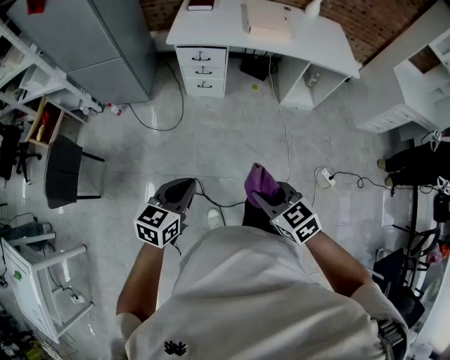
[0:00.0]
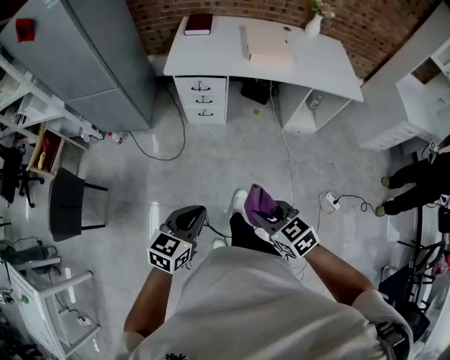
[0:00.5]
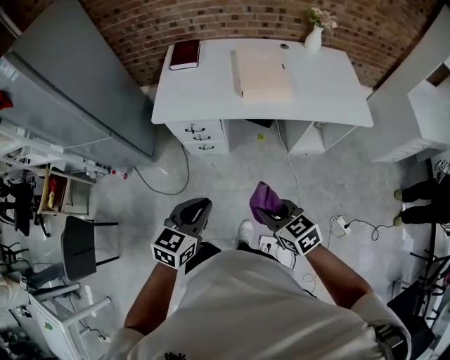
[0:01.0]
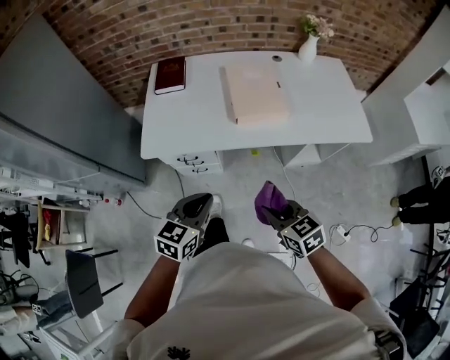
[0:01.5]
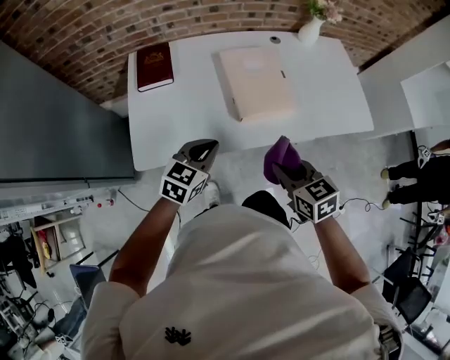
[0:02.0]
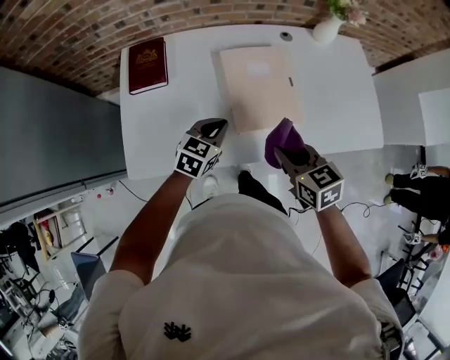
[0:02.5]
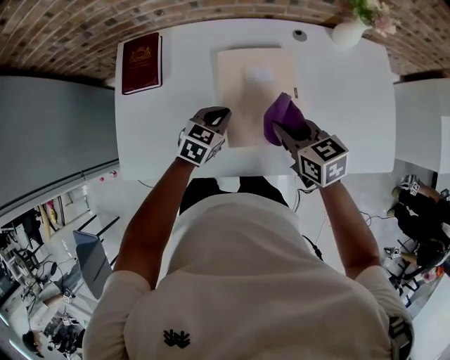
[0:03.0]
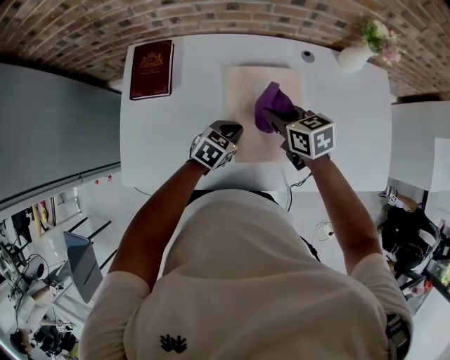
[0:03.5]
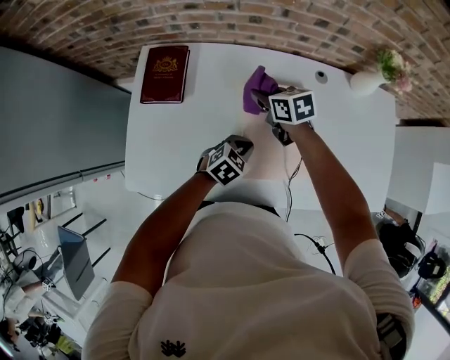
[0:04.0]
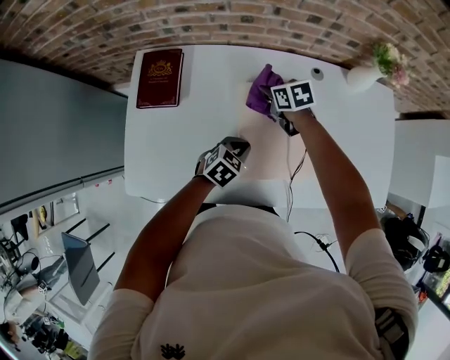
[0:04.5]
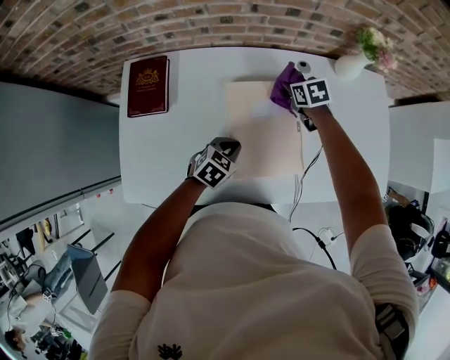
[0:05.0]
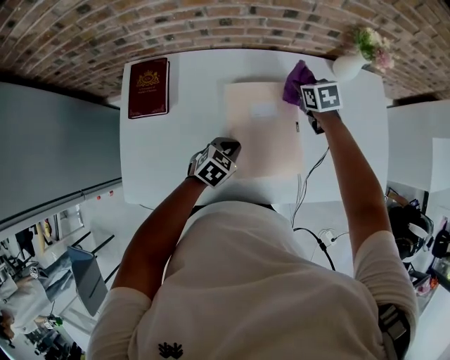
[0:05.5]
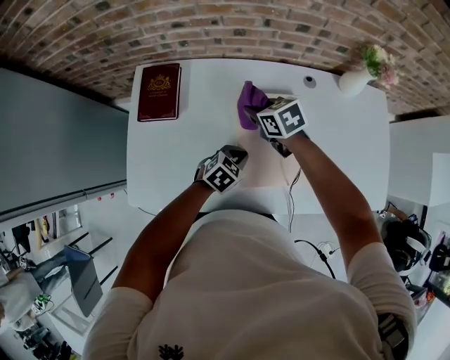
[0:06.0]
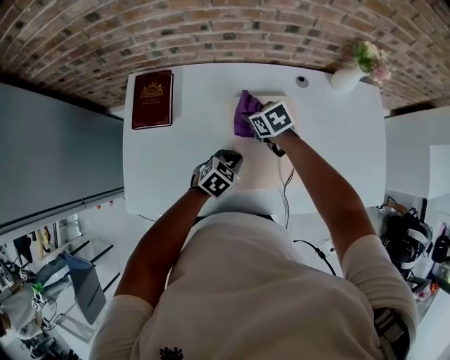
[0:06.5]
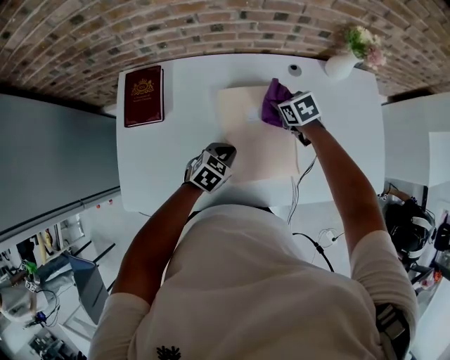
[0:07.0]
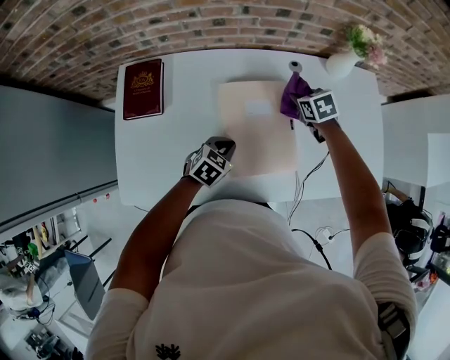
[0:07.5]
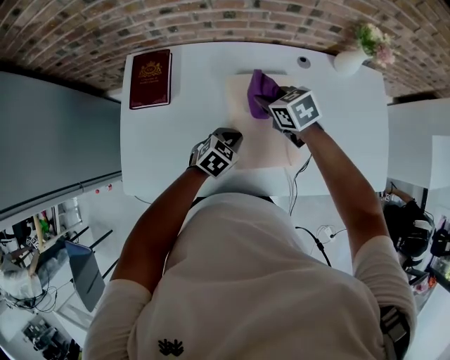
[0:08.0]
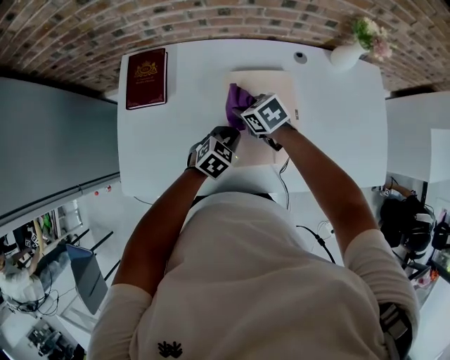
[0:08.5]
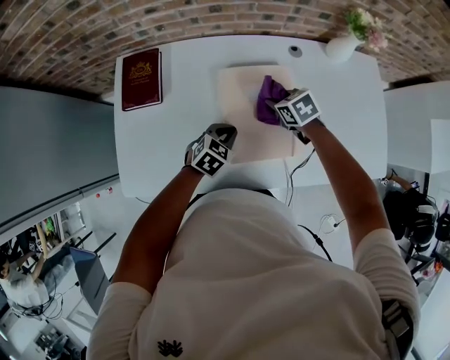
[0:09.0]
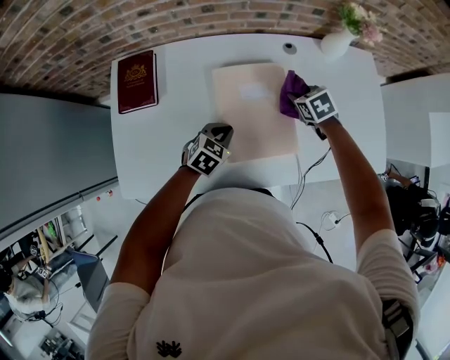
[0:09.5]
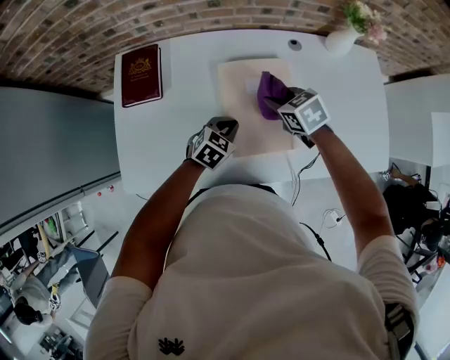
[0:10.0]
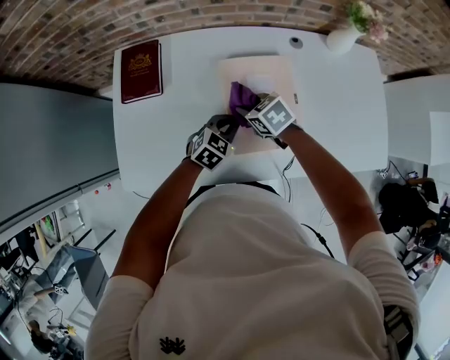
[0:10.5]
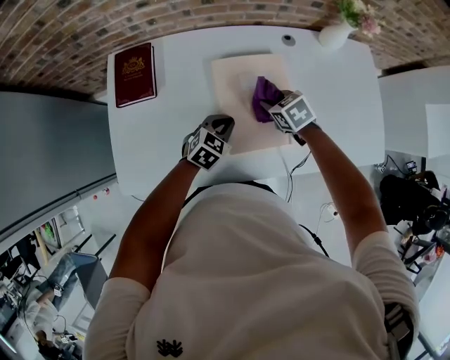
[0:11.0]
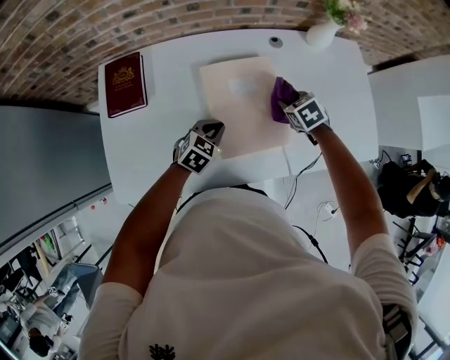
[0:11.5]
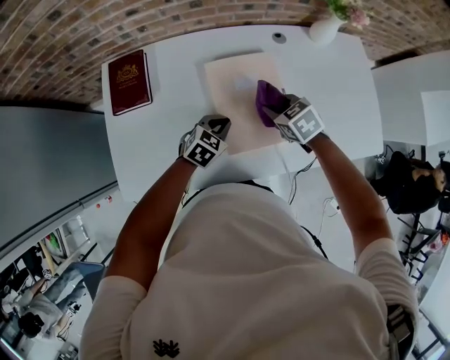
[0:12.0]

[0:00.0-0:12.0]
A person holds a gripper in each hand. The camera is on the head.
0:00.0 to 0:02.0: Both grippers are carried forward, approximately 70 cm. The left gripper changes its angle by roughly 20 degrees, while the right gripper swivels approximately 30 degrees.
0:02.0 to 0:04.0: The left gripper goes some 35 cm forward, downward and to the right, and turns by about 20 degrees, while the right gripper is displaced forward by roughly 50 cm, and changes its angle by roughly 20 degrees.
0:04.0 to 0:06.0: The right gripper travels to the right and back again, roughly 20 cm each way.
0:06.0 to 0:08.0: The right gripper moves roughly 20 cm to the right and comes back.
0:08.0 to 0:10.0: The right gripper moves left and right over some 20 cm, changing direction 2 times.
0:10.0 to 0:12.0: The right gripper swings left and right, roughly 20 cm each way, with 2 reversals.

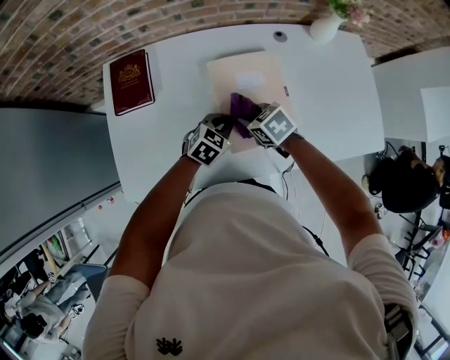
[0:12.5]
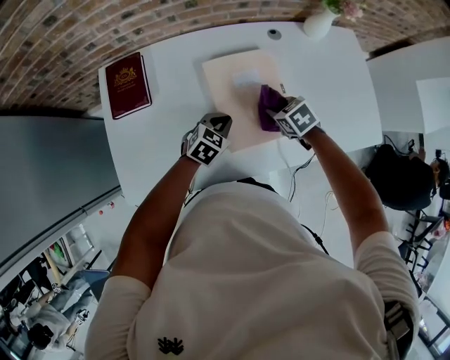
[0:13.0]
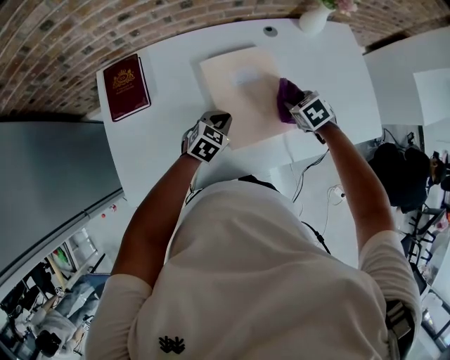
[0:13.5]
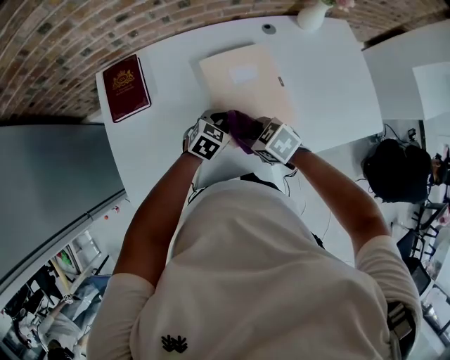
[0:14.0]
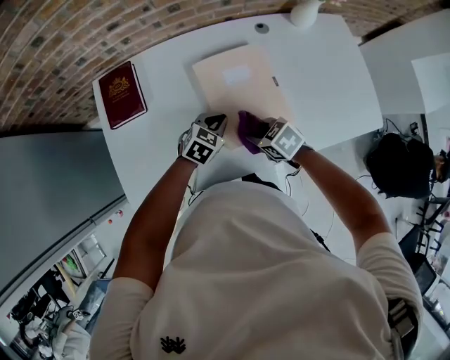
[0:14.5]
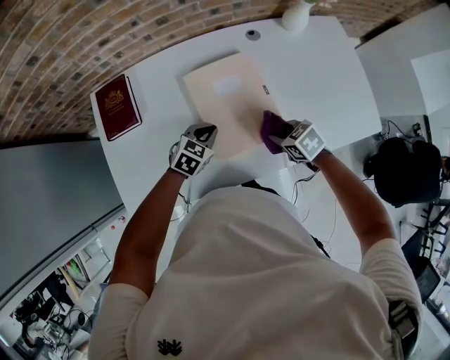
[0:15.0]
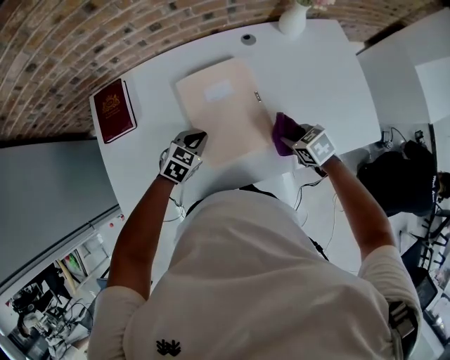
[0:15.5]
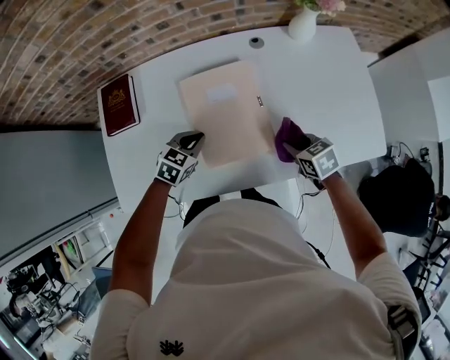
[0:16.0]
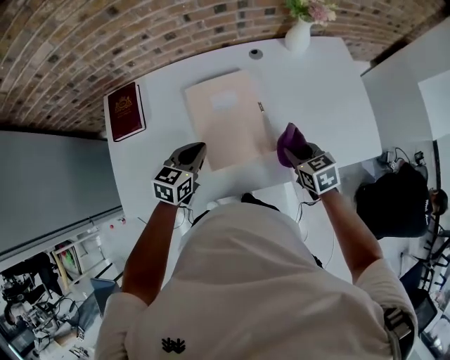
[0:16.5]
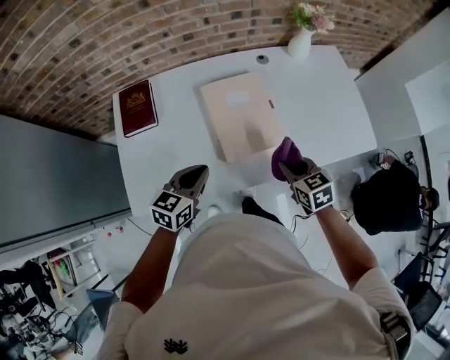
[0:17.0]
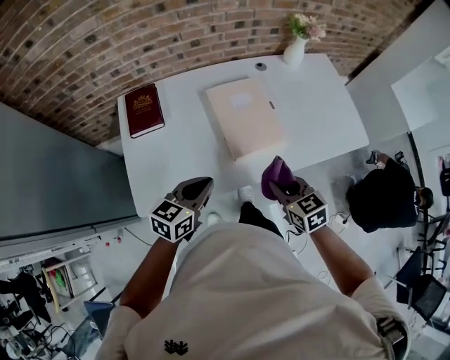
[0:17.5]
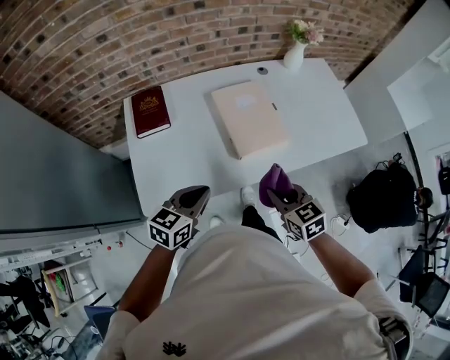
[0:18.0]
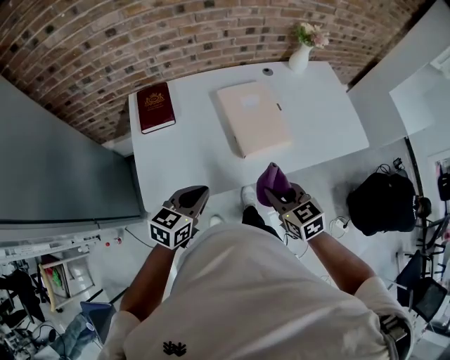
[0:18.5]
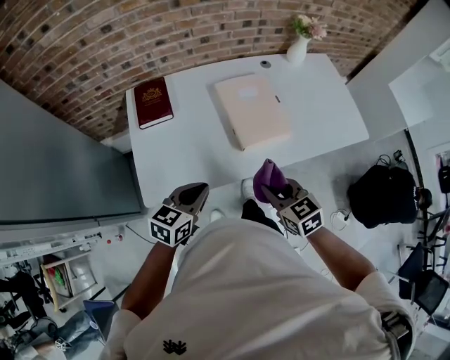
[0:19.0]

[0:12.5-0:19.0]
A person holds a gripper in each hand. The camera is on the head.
0:12.5 to 0:14.5: The right gripper swings left and right, some 20 cm each way, with 2 reversals.
0:14.5 to 0:17.0: The left gripper is displaced upward, backward and to the left by about 20 cm, and rotates roughly 30 degrees; the right gripper heads to the right, upward and backward, covering roughly 15 cm, and swivels some 30 degrees.
0:17.0 to 0:19.0: Both grippers move backward and to the left, about 20 cm.

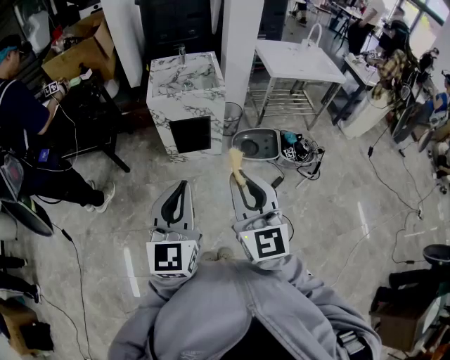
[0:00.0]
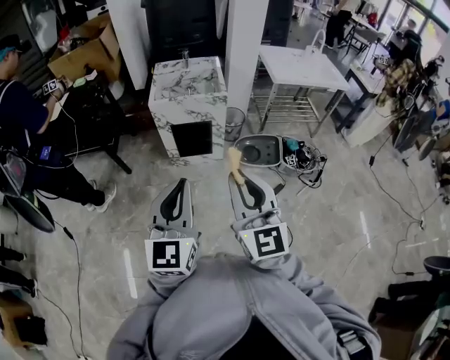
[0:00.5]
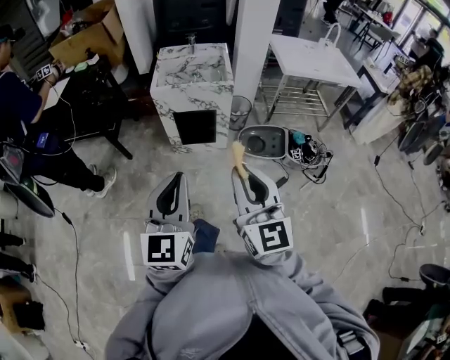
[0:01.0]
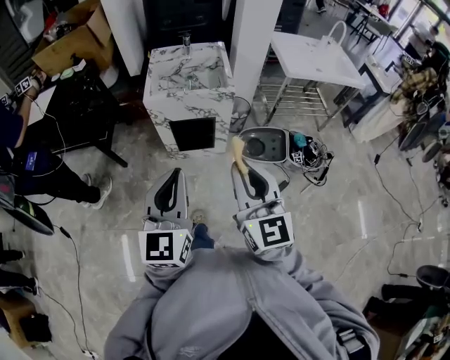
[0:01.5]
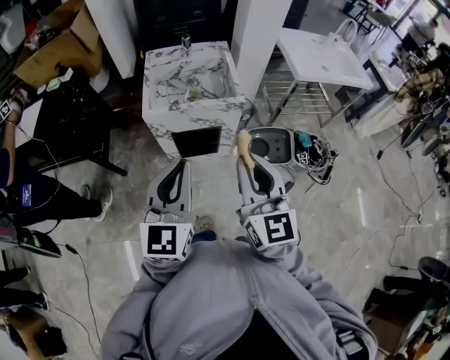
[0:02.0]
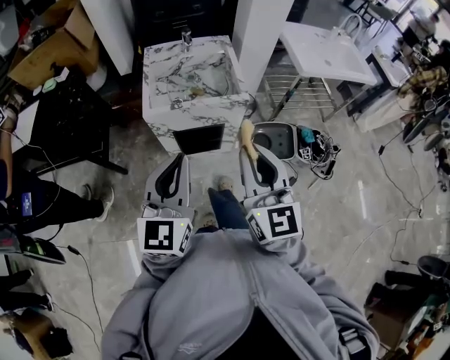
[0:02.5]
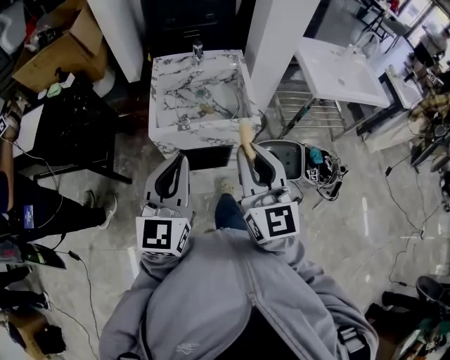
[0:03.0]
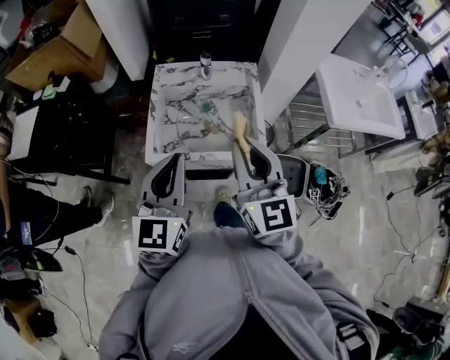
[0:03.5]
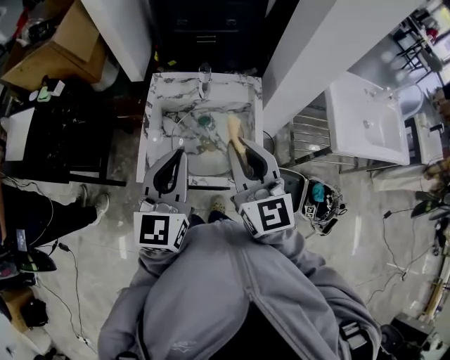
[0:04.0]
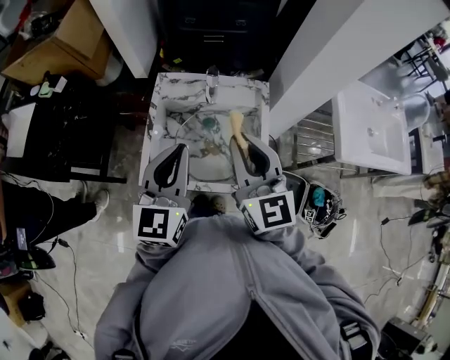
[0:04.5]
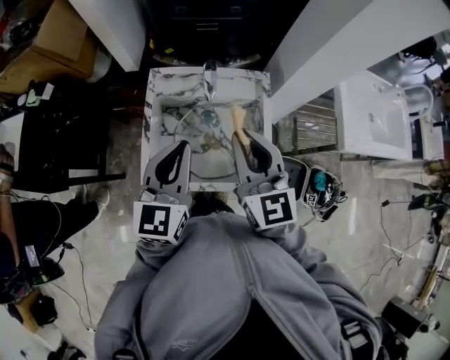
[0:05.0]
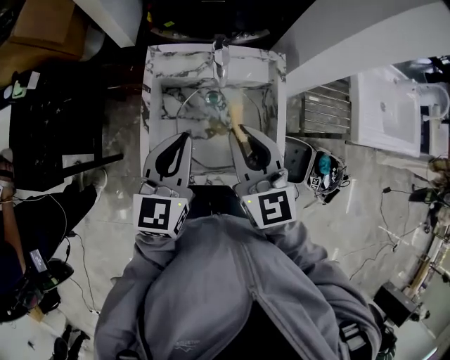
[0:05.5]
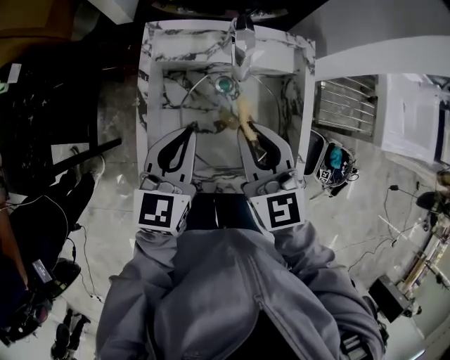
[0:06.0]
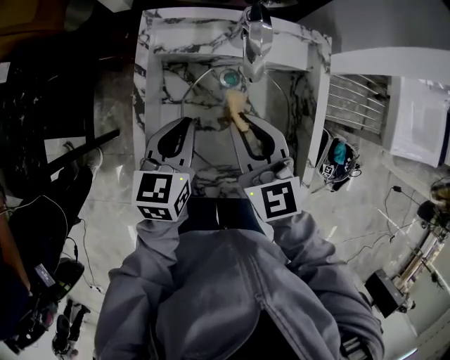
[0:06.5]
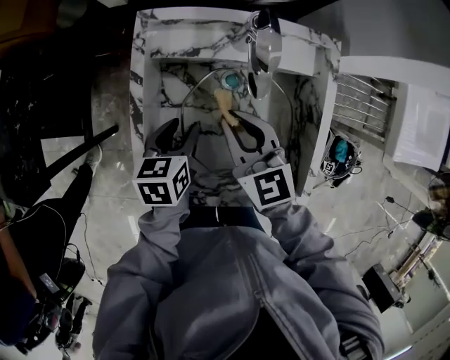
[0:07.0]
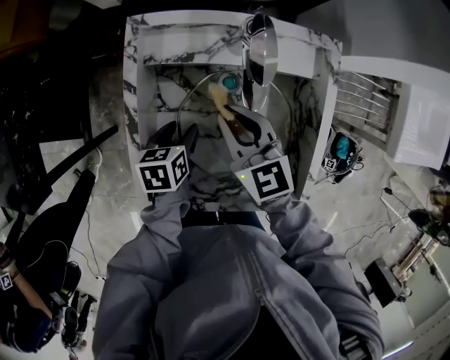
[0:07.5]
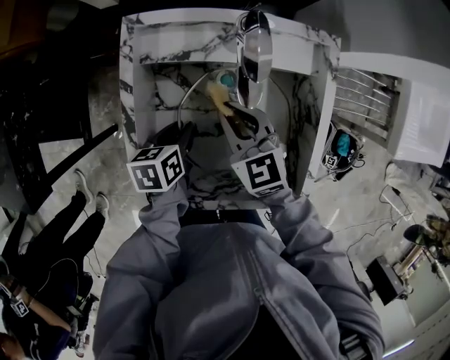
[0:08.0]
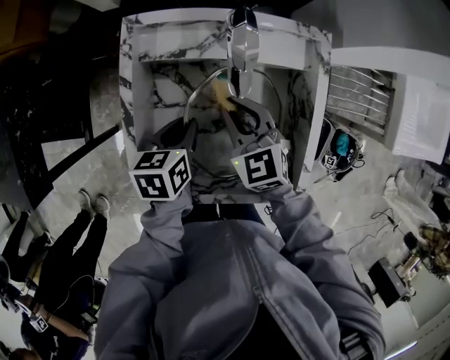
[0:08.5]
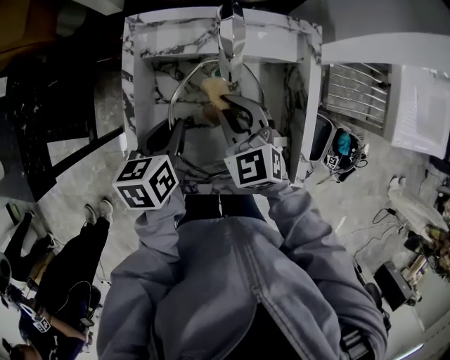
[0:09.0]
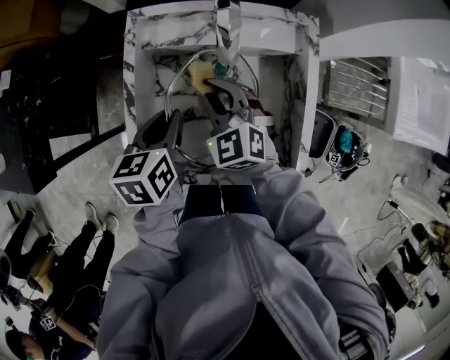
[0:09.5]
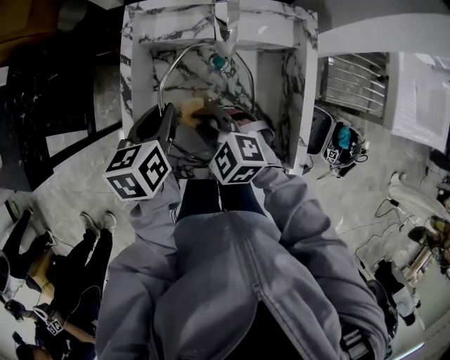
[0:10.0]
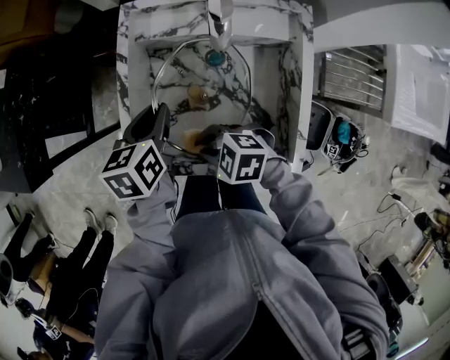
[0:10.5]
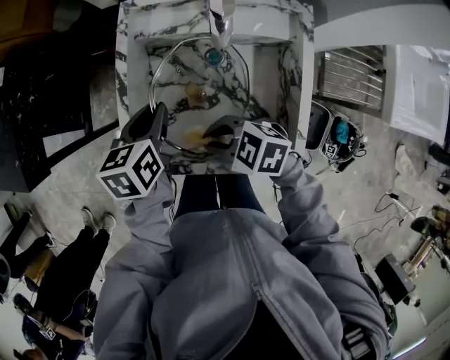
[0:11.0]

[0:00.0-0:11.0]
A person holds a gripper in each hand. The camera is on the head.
0:00.0 to 0:02.0: The two grippers go approximately 40 cm forward.
0:02.0 to 0:03.5: Both grippers move forward, approximately 35 cm.
0:03.5 to 0:05.5: The two grippers go roughly 30 cm forward and downward.
0:05.5 to 0:07.5: The left gripper travels downward by some 35 cm, angles its fingers downward, by roughly 40 degrees, and opens. The right gripper moves downward and forward, roughly 30 cm, and changes its angle by approximately 20 degrees.
0:07.5 to 0:09.0: The left gripper is displaced upward by some 10 cm, and closes up, while the right gripper rotates about 20 degrees.
0:09.0 to 0:11.0: The right gripper moves about 15 cm, and swivels roughly 50 degrees.
